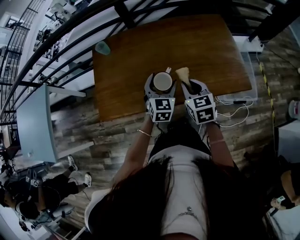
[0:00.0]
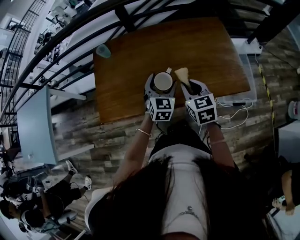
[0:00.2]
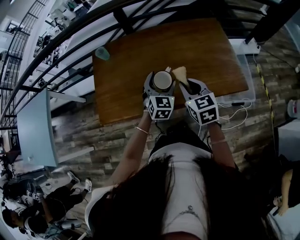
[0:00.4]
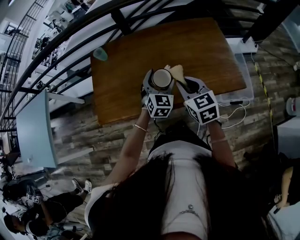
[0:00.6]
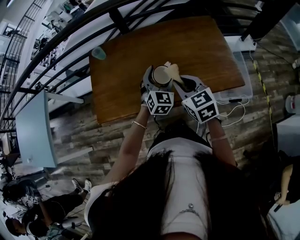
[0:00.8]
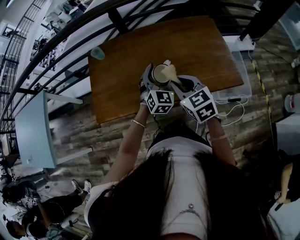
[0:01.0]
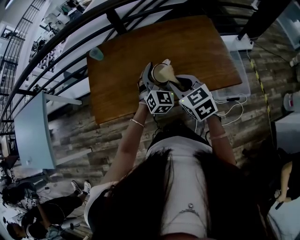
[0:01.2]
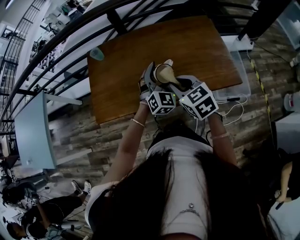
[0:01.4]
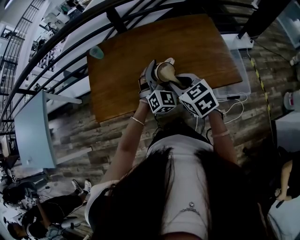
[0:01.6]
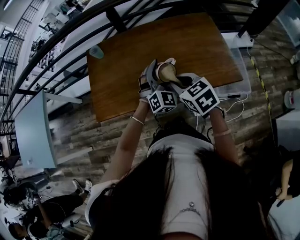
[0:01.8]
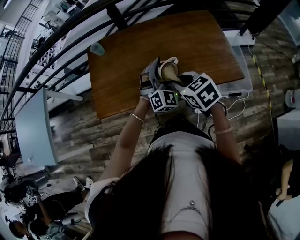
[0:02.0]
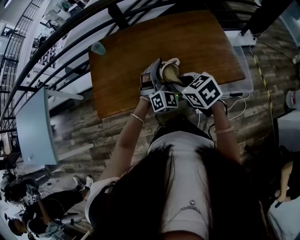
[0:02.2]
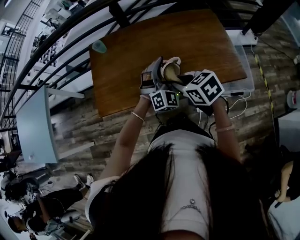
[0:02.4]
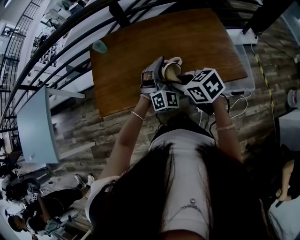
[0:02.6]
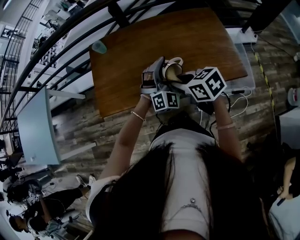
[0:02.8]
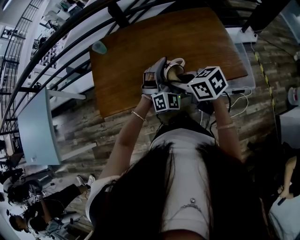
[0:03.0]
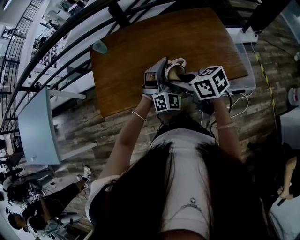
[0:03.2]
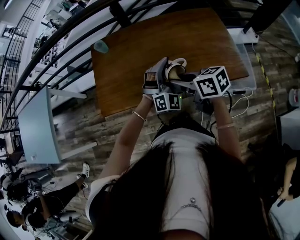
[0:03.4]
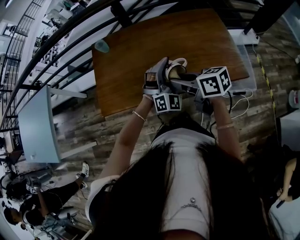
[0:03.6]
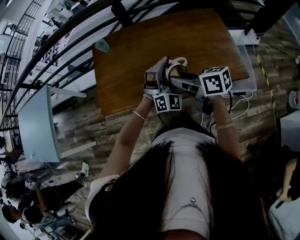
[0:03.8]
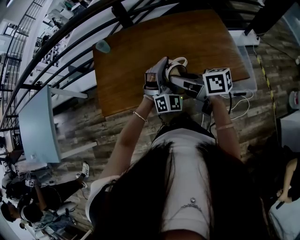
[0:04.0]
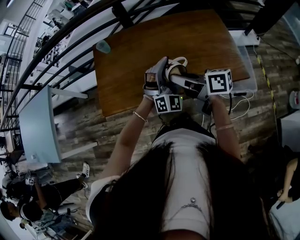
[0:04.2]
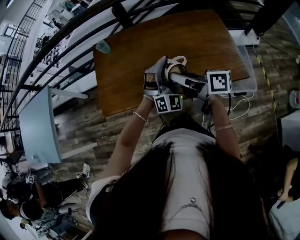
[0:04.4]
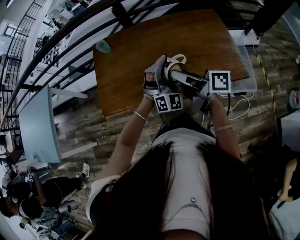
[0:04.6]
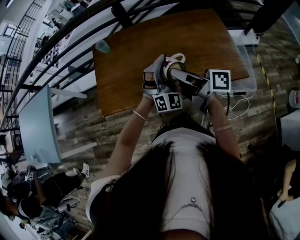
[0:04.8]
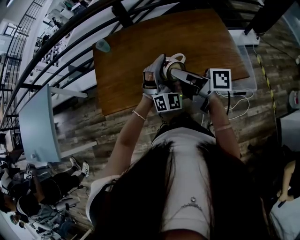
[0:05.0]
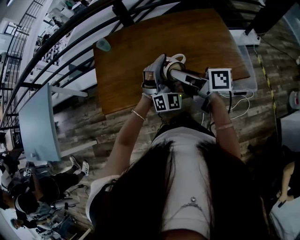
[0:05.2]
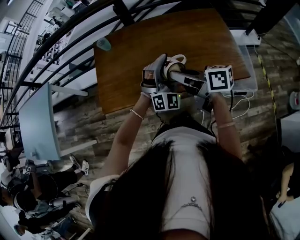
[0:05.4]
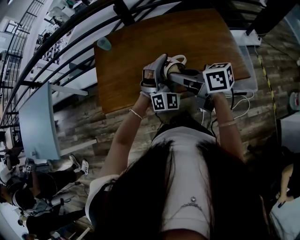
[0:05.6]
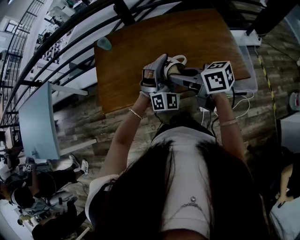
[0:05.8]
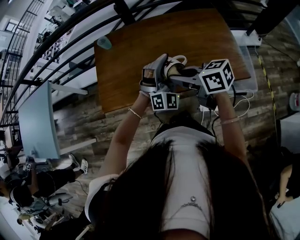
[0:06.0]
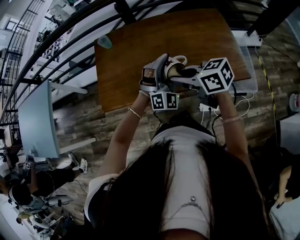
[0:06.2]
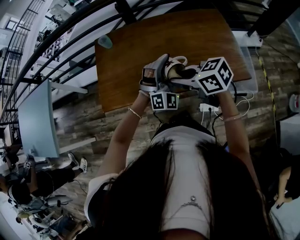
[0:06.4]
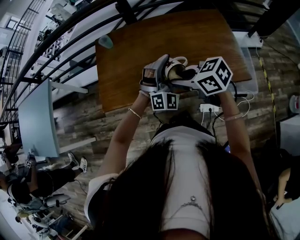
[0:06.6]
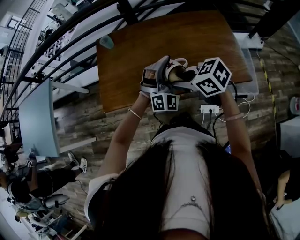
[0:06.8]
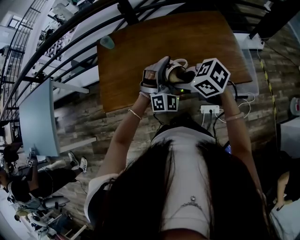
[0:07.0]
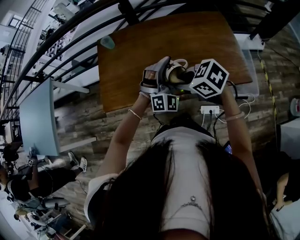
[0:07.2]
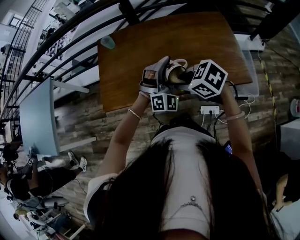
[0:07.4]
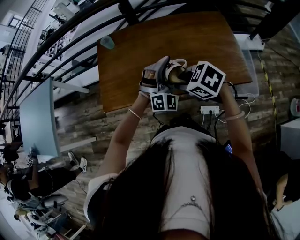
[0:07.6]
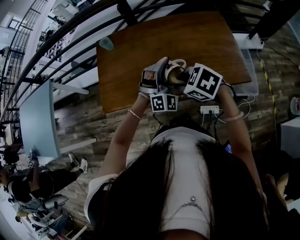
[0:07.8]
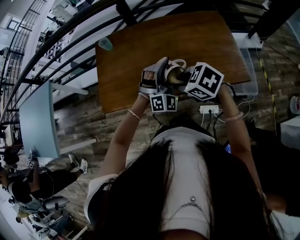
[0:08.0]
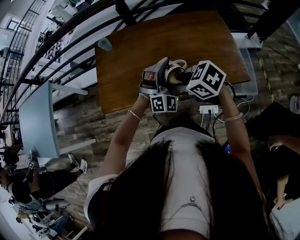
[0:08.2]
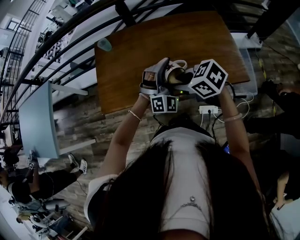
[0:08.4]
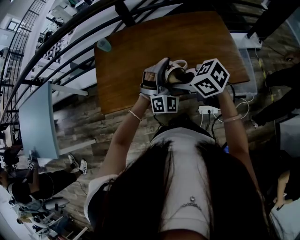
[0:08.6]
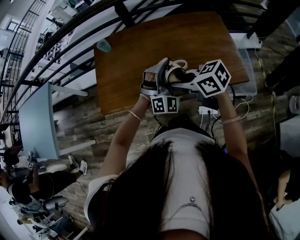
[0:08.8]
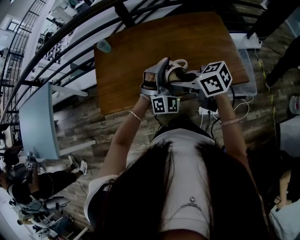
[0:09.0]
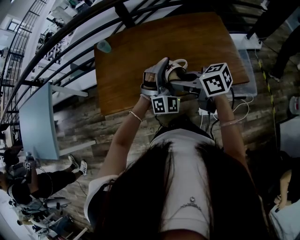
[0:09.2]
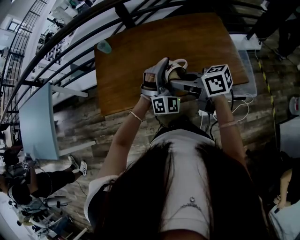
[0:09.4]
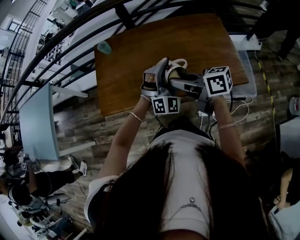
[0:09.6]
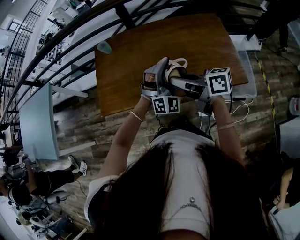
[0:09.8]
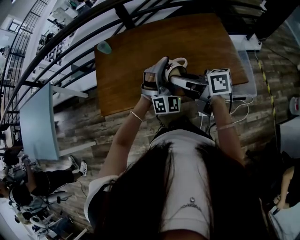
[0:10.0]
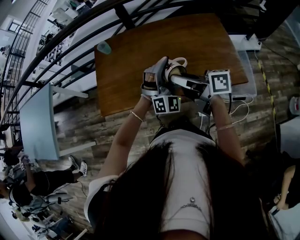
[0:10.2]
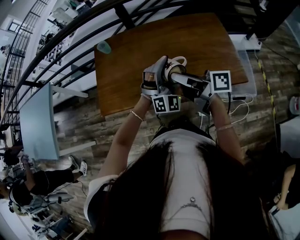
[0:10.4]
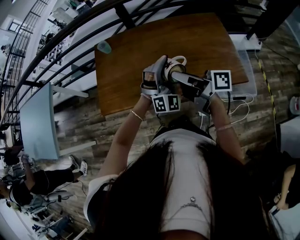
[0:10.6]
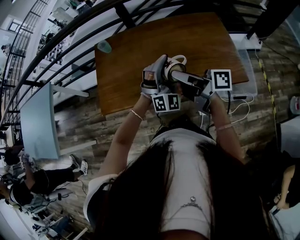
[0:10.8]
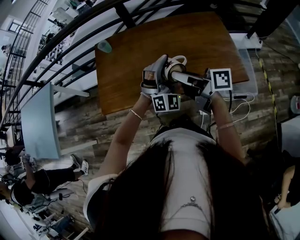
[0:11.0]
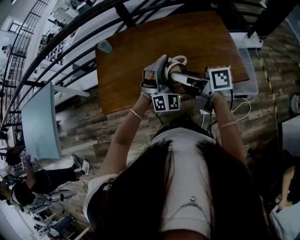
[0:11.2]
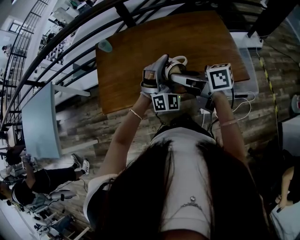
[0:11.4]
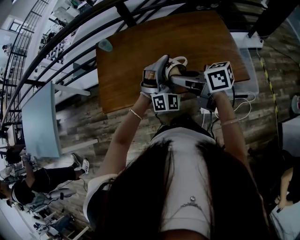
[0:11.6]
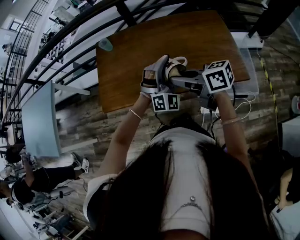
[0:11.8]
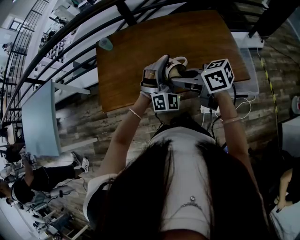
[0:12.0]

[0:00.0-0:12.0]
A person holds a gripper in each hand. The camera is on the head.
0.0 to 1.6 s: The two grippers go about 5 cm upward. The left gripper swivels about 30 degrees.
1.6 to 3.0 s: The right gripper changes its angle by about 30 degrees.
3.0 to 4.4 s: The right gripper moves upward, roughly 5 cm, and points its fingers about 30 degrees further upward.
4.4 to 6.0 s: The right gripper turns by approximately 30 degrees.
6.0 to 7.6 s: The right gripper moves about 5 cm, and tilts its fingers roughly 30 degrees downward.
7.6 to 9.0 s: The right gripper rotates some 40 degrees.
9.0 to 10.4 s: The right gripper rotates some 40 degrees.
10.4 to 12.0 s: The right gripper changes its angle by approximately 30 degrees.

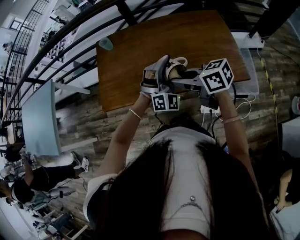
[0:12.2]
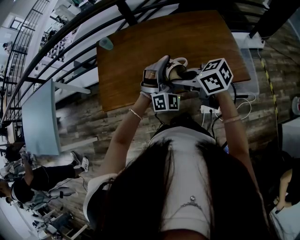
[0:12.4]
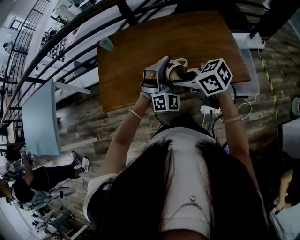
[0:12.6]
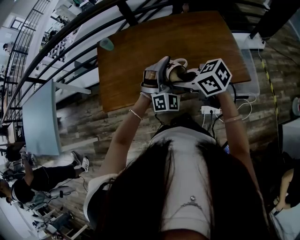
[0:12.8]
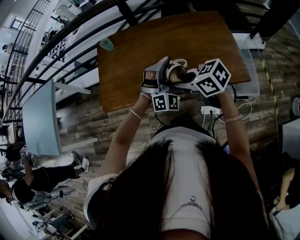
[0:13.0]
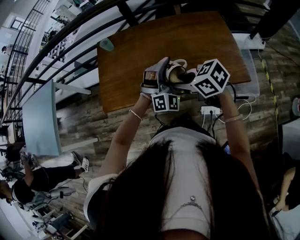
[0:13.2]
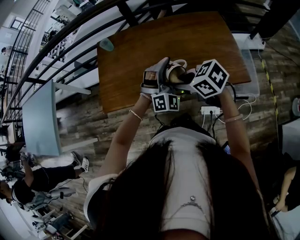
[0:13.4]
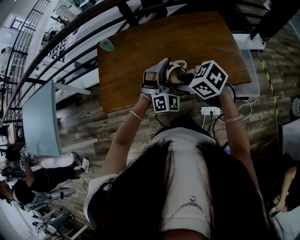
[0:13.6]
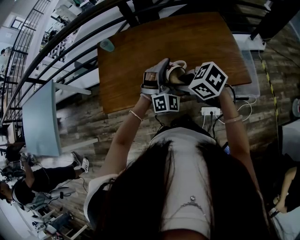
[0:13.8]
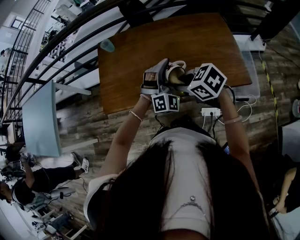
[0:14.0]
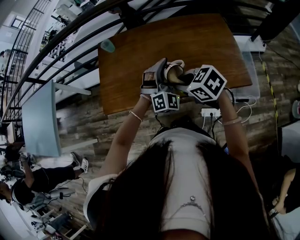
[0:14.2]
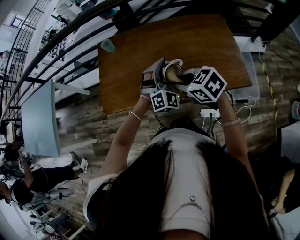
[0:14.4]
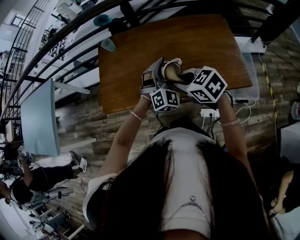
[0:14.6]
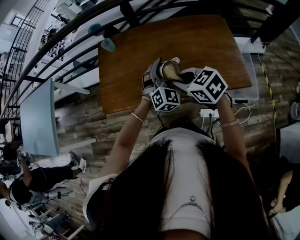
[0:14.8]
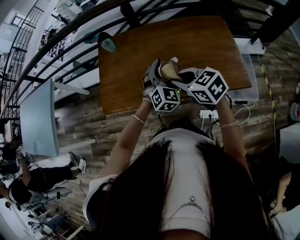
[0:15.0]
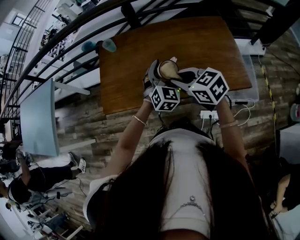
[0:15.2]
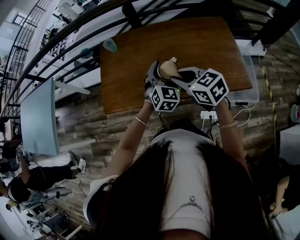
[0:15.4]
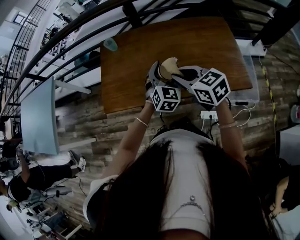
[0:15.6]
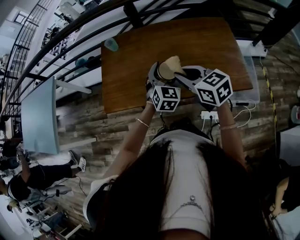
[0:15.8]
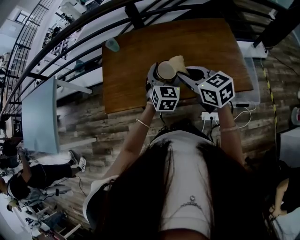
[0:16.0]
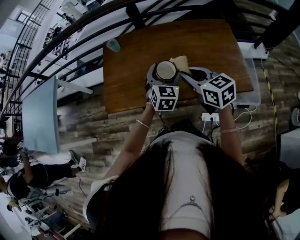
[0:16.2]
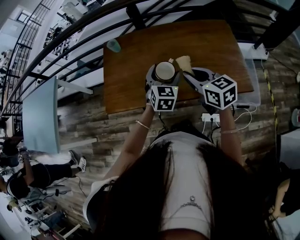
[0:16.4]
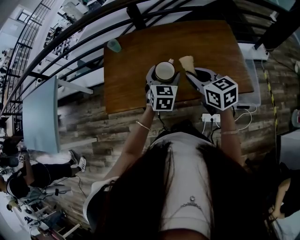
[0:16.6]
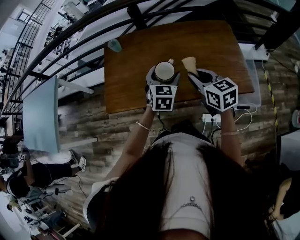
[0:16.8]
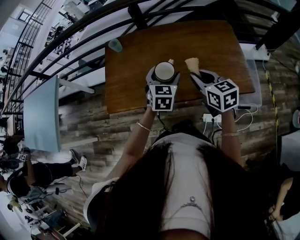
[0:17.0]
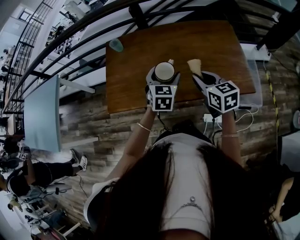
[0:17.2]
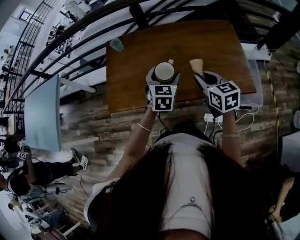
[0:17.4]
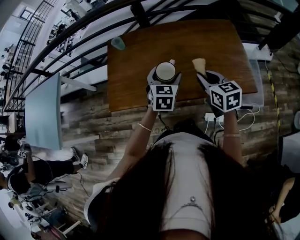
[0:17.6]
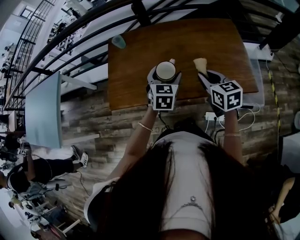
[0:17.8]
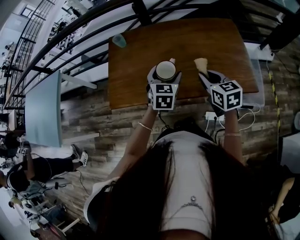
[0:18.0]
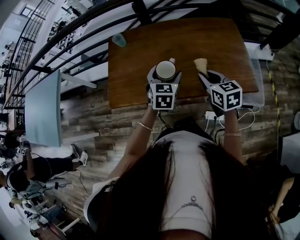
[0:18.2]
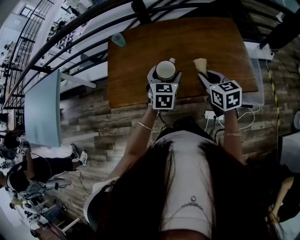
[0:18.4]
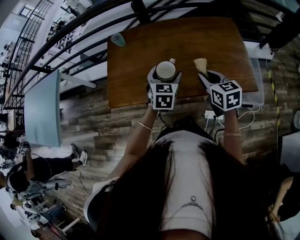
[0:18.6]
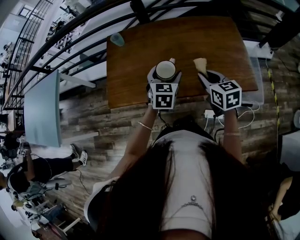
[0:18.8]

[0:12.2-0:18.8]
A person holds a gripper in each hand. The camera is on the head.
12.2 to 13.8 s: The right gripper rotates roughly 30 degrees.
13.8 to 15.4 s: The left gripper ends up some 5 cm from where it was, and rotates some 40 degrees. The right gripper moves about 5 cm, and changes its angle by about 20 degrees.
15.4 to 17.2 s: The left gripper rotates about 20 degrees; the right gripper moves to the right, some 10 cm, and swivels roughly 20 degrees.
17.2 to 18.8 s: The grippers move only a little.

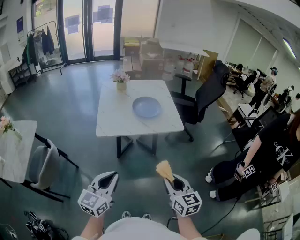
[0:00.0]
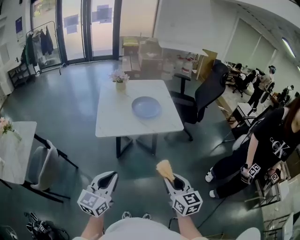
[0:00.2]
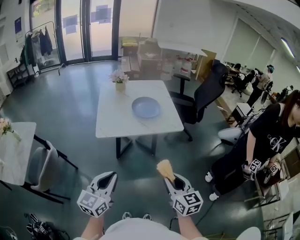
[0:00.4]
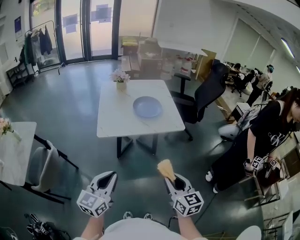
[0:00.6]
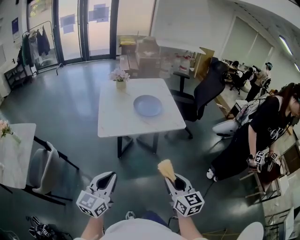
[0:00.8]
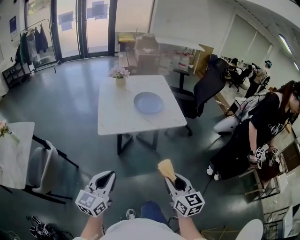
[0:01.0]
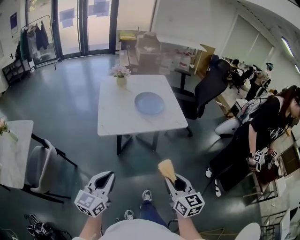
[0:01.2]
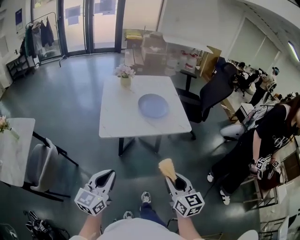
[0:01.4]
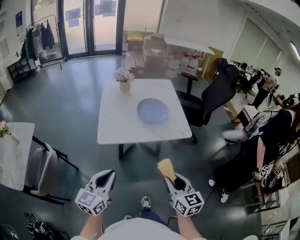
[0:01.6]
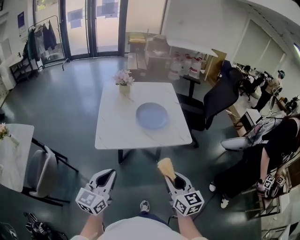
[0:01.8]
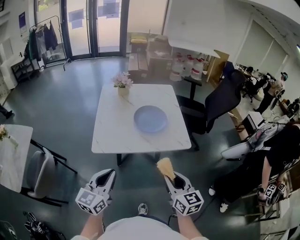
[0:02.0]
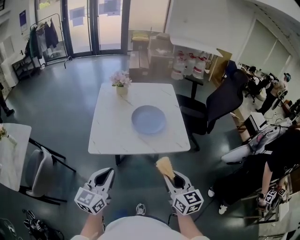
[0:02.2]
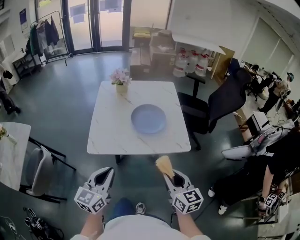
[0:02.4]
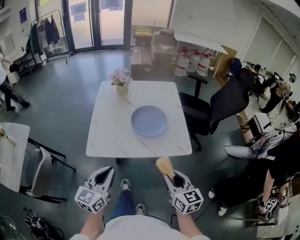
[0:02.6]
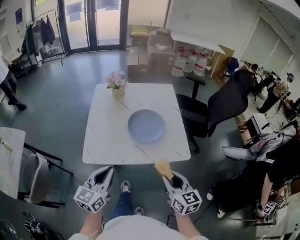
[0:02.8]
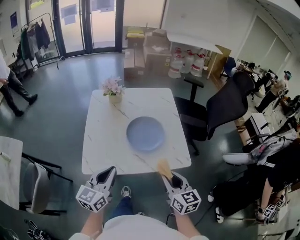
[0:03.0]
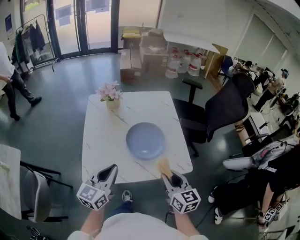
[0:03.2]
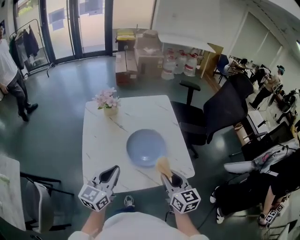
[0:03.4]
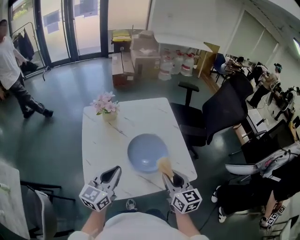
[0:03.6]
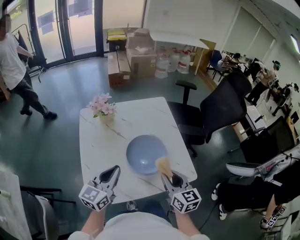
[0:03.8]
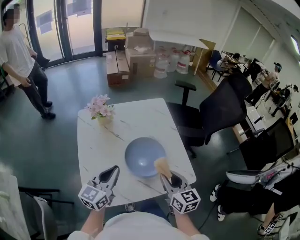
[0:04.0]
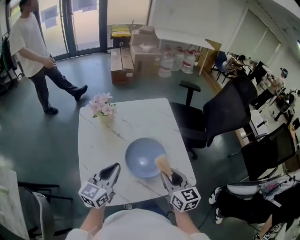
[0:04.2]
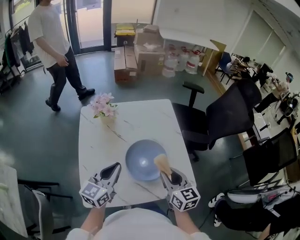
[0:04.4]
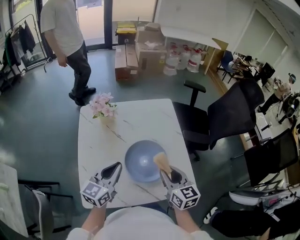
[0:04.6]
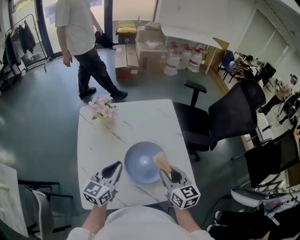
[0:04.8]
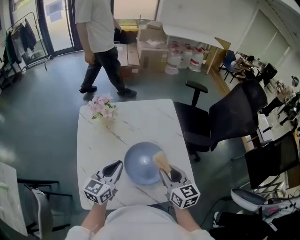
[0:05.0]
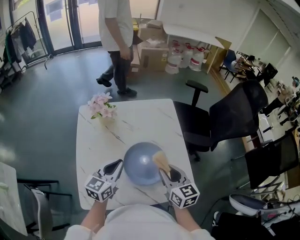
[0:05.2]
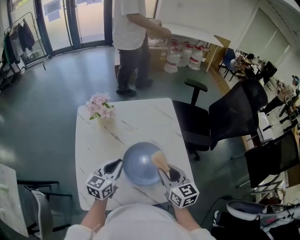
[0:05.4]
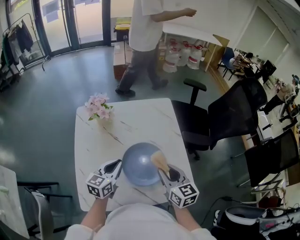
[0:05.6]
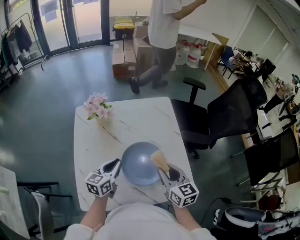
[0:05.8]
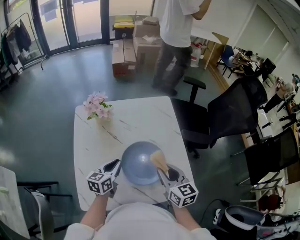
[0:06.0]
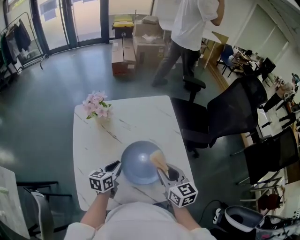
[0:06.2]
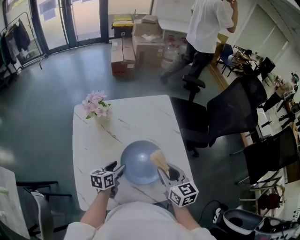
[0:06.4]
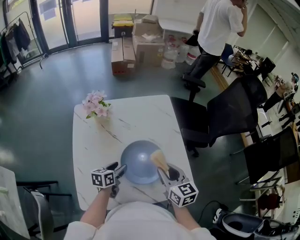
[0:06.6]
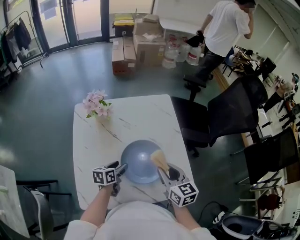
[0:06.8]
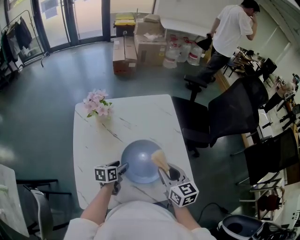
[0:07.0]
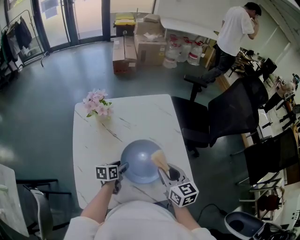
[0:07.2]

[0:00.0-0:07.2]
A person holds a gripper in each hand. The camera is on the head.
0.0 to 1.4 s: The right gripper heads to the left, covering some 5 cm. Meanwhile the left gripper travels to the left and forward by approximately 10 cm.
1.4 to 2.8 s: Both grippers move forward, roughly 25 cm.
2.8 to 4.4 s: The grippers both shift forward by some 25 cm.
4.4 to 5.8 s: The left gripper goes some 10 cm downward and forward. Meanwhile the right gripper goes about 5 cm forward.
5.8 to 7.2 s: The left gripper shifts about 10 cm downward, turns by about 30 degrees, and opens.
